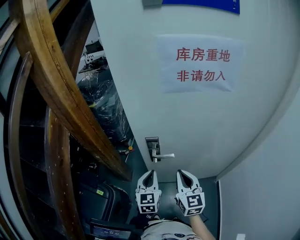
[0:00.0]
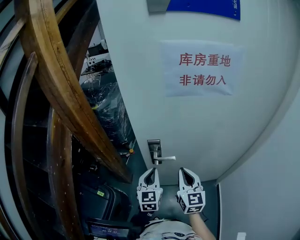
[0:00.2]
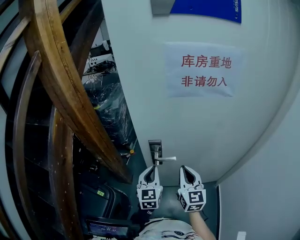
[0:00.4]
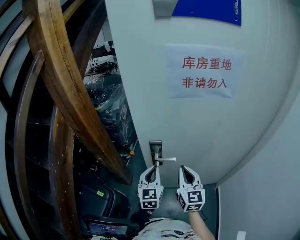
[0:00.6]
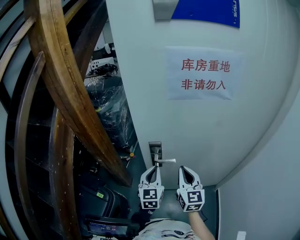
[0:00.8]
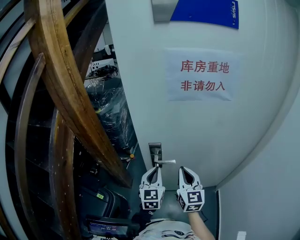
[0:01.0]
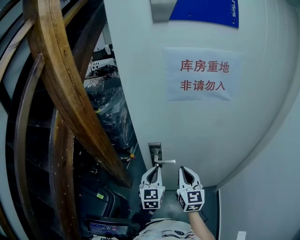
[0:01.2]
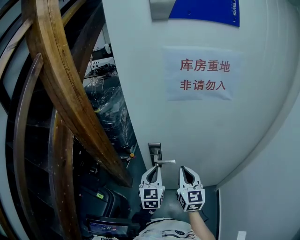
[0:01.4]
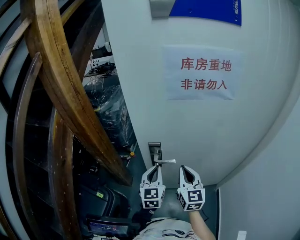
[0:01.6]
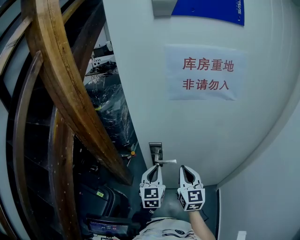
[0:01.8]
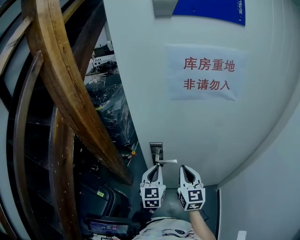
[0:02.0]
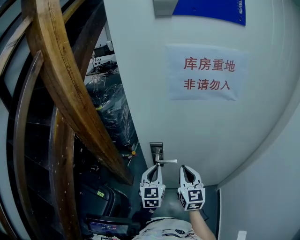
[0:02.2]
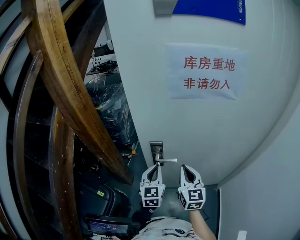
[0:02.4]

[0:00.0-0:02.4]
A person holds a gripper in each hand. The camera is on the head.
0:00.0 to 0:02.4: The grippers move only a little.

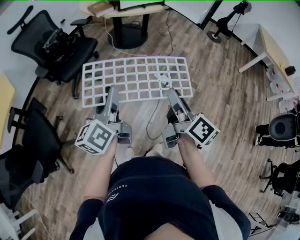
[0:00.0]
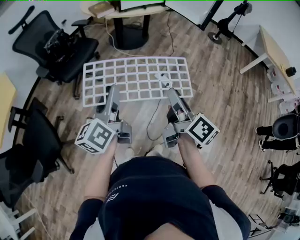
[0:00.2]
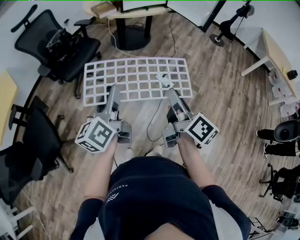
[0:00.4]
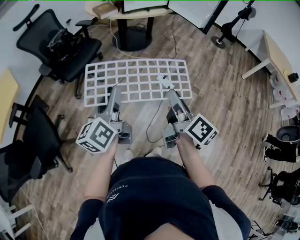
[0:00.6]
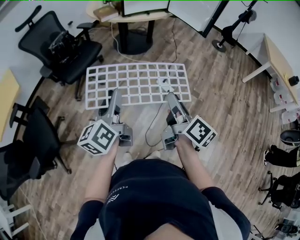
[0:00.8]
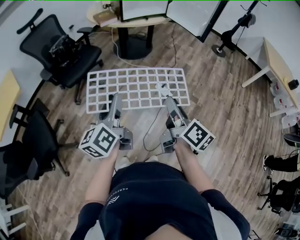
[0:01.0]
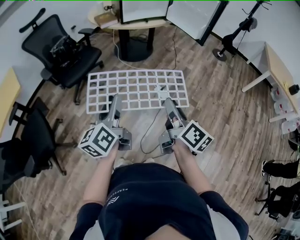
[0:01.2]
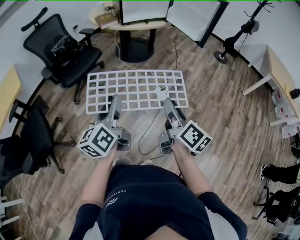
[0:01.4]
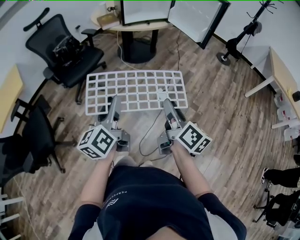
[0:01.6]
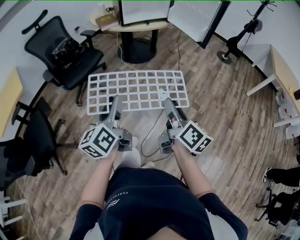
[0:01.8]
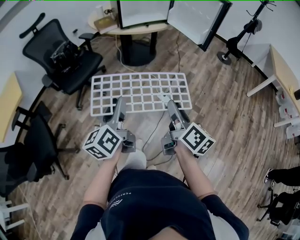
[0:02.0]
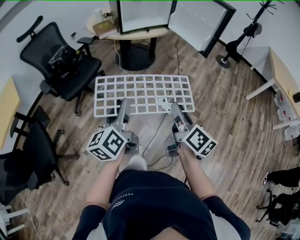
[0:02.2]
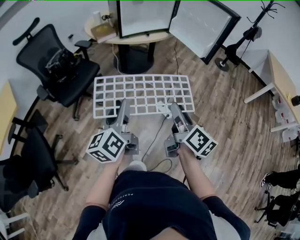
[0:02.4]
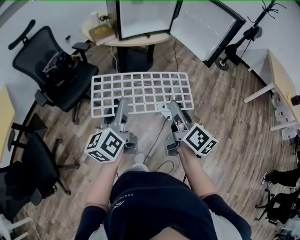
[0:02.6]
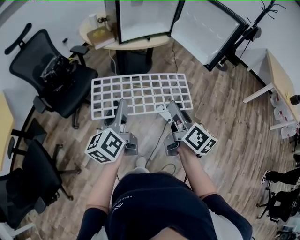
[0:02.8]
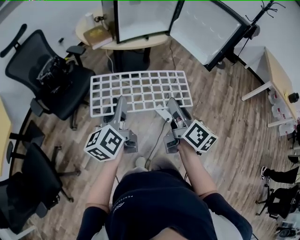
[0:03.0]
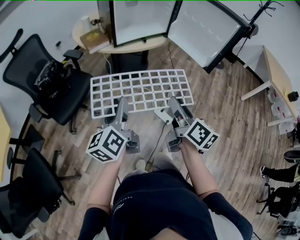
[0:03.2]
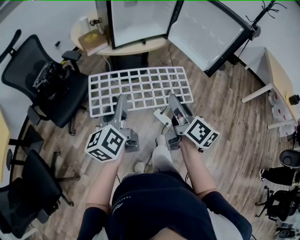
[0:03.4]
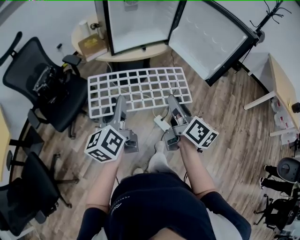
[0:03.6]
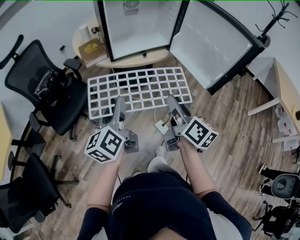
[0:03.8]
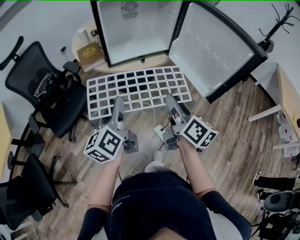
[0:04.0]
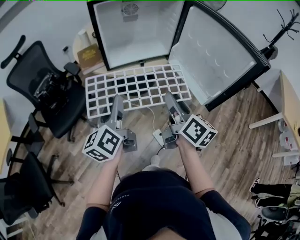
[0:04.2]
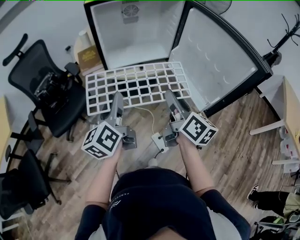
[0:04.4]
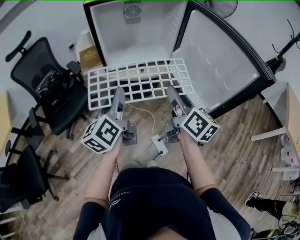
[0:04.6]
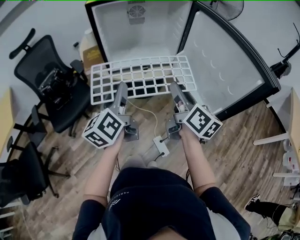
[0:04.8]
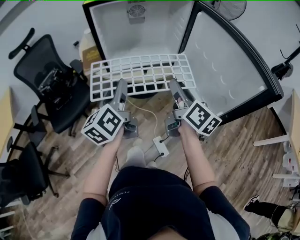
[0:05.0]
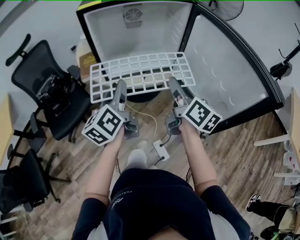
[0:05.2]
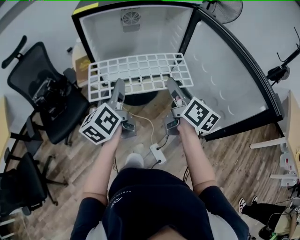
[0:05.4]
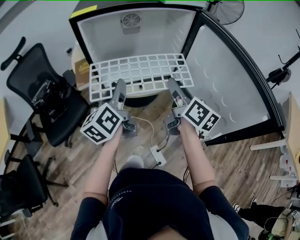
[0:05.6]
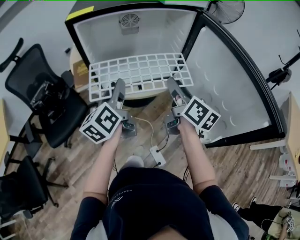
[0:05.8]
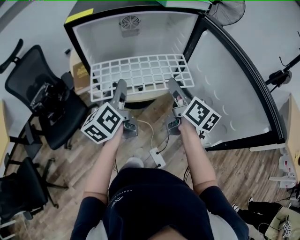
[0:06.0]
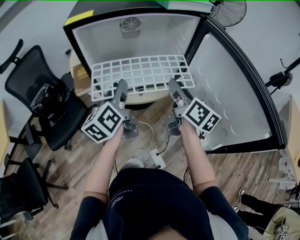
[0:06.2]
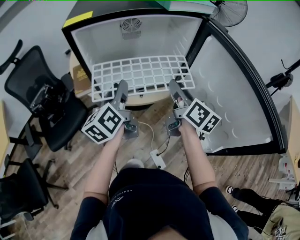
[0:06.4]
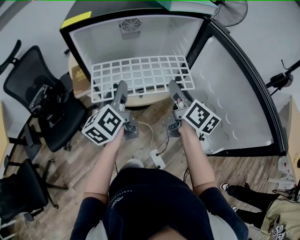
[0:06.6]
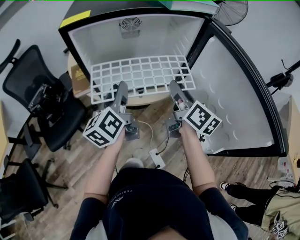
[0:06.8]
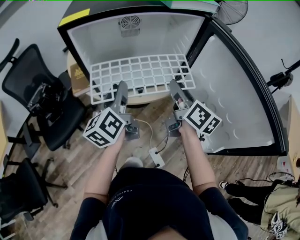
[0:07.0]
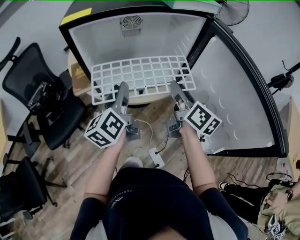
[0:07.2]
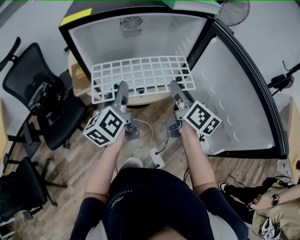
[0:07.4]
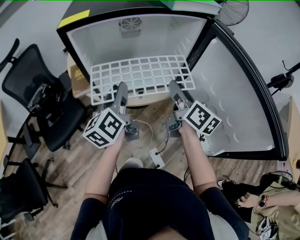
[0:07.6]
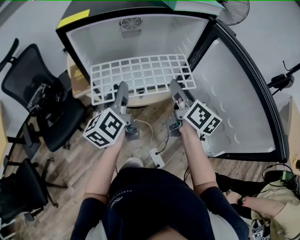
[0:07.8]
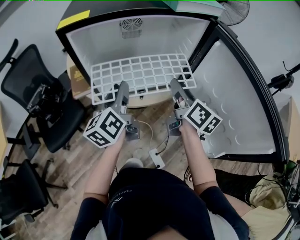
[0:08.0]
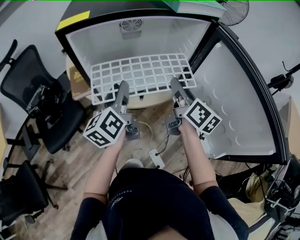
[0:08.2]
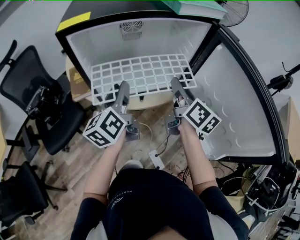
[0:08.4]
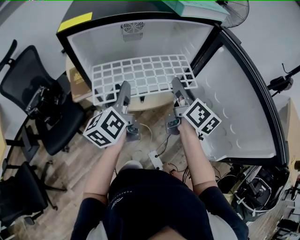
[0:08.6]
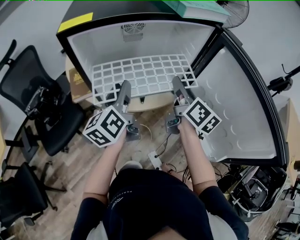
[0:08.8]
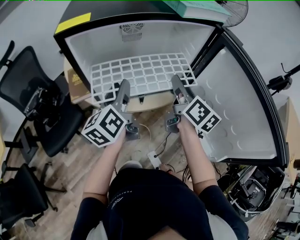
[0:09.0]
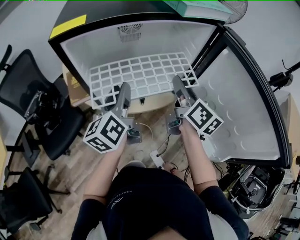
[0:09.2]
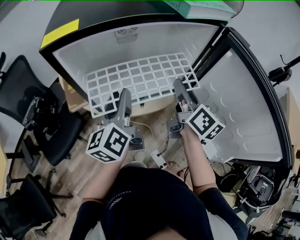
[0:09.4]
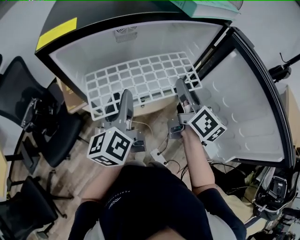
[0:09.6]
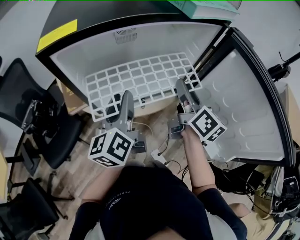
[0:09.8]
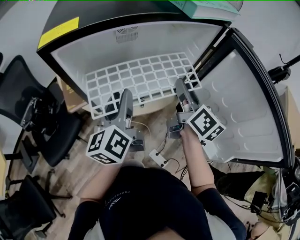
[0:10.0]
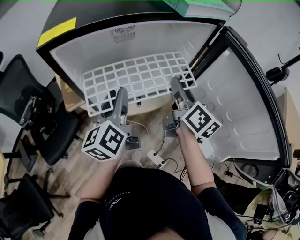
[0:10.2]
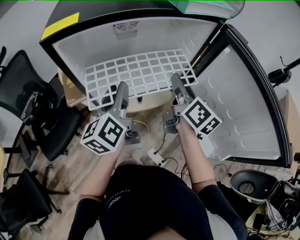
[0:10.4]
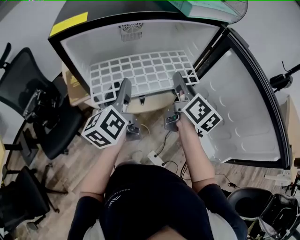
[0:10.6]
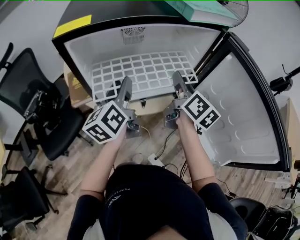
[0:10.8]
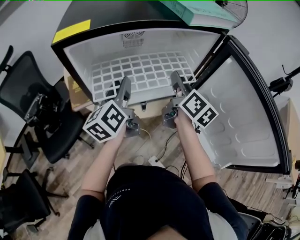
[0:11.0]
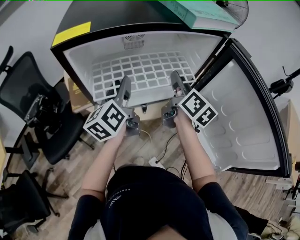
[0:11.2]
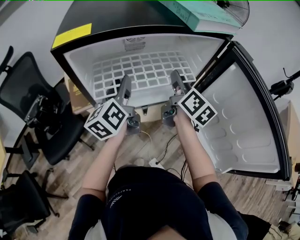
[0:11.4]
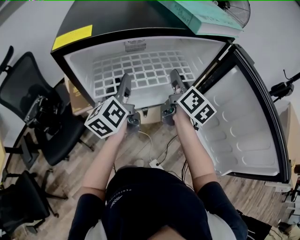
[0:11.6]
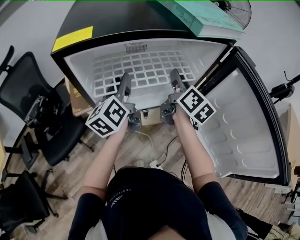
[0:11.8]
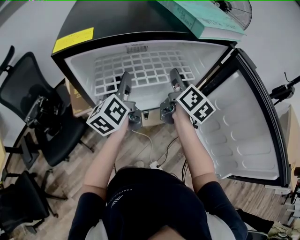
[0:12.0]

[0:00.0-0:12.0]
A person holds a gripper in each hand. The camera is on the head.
0:00.0 to 0:01.6: The two grippers go approximately 10 cm to the right.
0:01.6 to 0:03.0: The grippers both shift forward by some 25 cm.
0:03.0 to 0:04.4: Both grippers move forward and to the right, about 25 cm.
0:04.4 to 0:06.0: Both grippers travel together forward, roughly 20 cm.
0:06.0 to 0:07.6: The grippers stay close to where they were, moving slightly.
0:07.6 to 0:10.4: The grippers move only a little.
0:10.4 to 0:12.0: Both grippers move forward, about 10 cm.

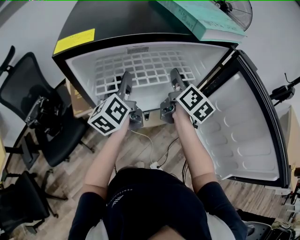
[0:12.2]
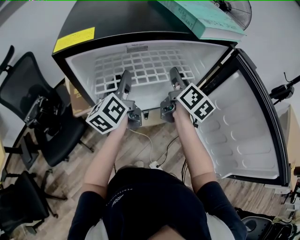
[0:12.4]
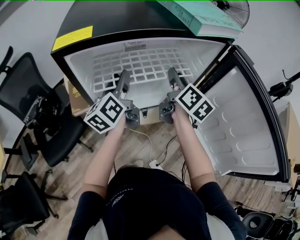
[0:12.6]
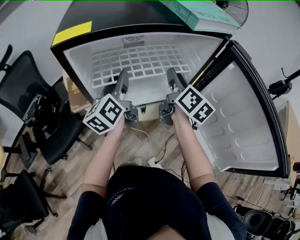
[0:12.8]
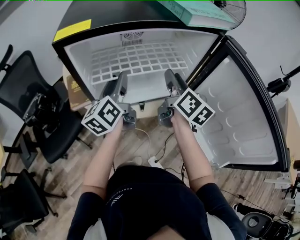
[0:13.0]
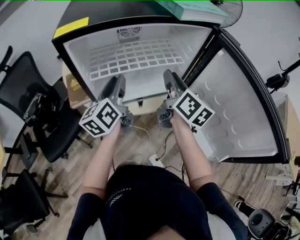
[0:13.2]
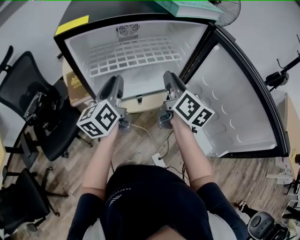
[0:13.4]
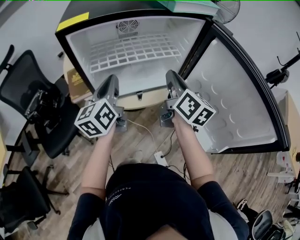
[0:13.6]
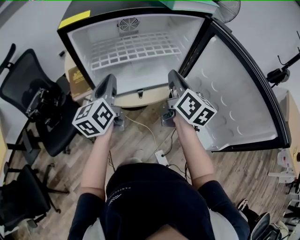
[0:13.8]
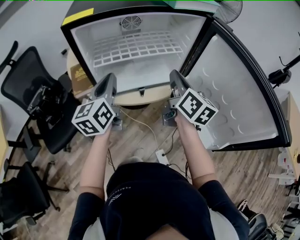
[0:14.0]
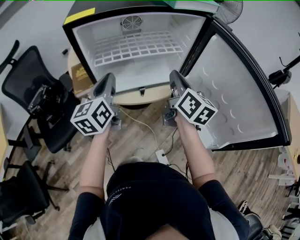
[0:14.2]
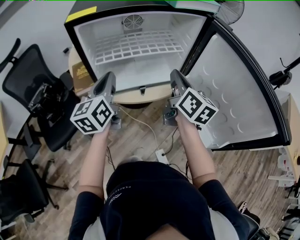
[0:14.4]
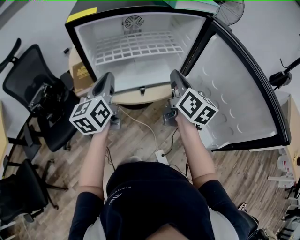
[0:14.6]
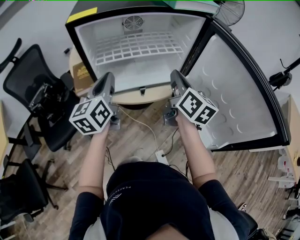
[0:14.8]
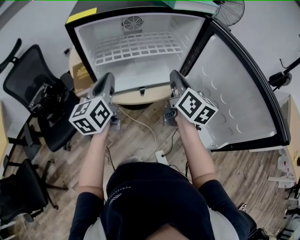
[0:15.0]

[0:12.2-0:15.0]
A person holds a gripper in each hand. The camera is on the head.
0:12.2 to 0:13.6: Both grippers move backward, approximately 10 cm. The right gripper closes. Meanwhile the left gripper closes.
0:13.6 to 0:15.0: The grippers move only a little.

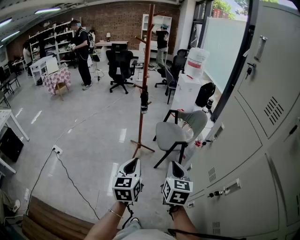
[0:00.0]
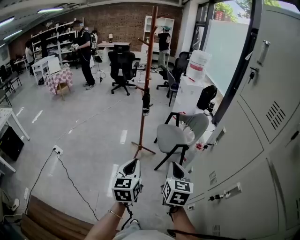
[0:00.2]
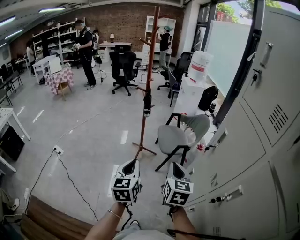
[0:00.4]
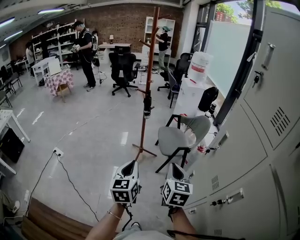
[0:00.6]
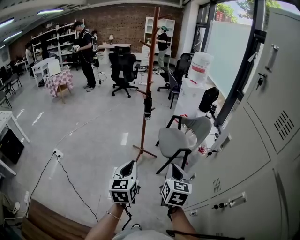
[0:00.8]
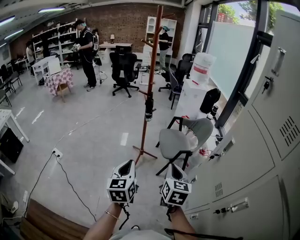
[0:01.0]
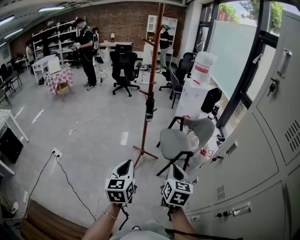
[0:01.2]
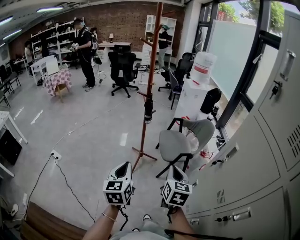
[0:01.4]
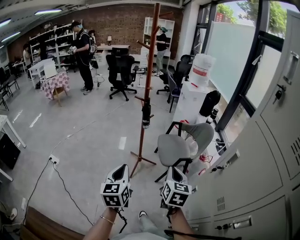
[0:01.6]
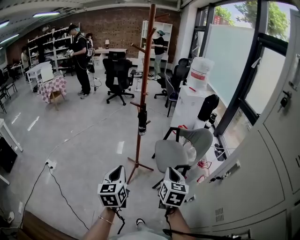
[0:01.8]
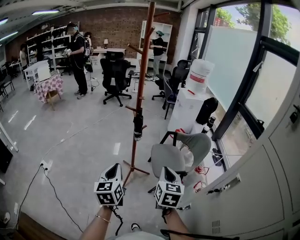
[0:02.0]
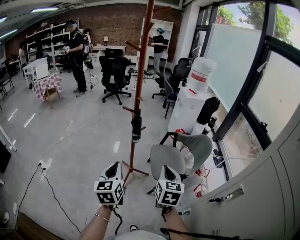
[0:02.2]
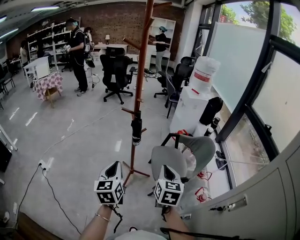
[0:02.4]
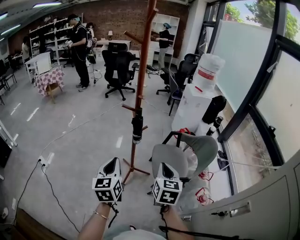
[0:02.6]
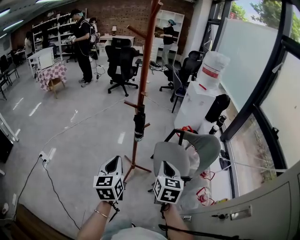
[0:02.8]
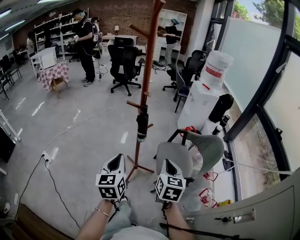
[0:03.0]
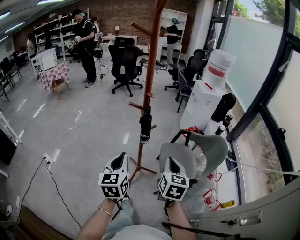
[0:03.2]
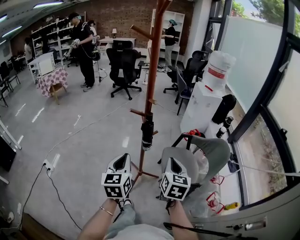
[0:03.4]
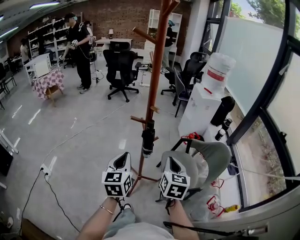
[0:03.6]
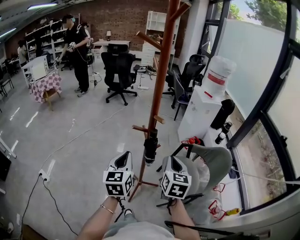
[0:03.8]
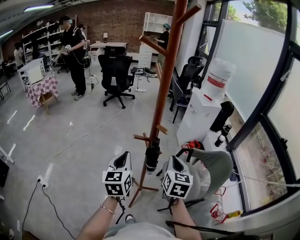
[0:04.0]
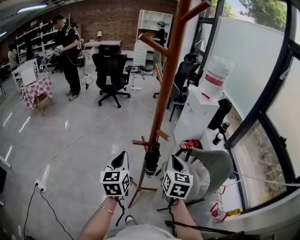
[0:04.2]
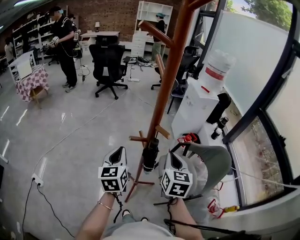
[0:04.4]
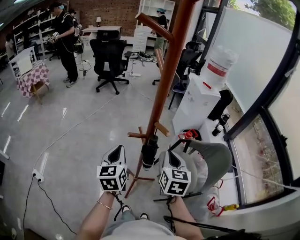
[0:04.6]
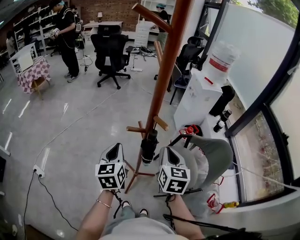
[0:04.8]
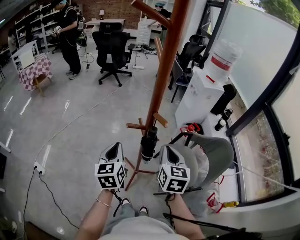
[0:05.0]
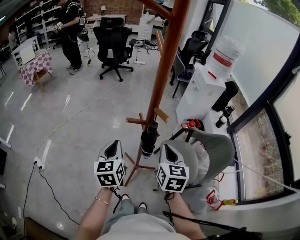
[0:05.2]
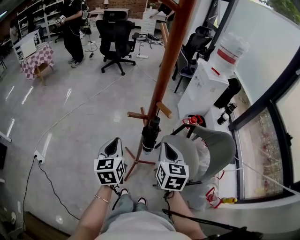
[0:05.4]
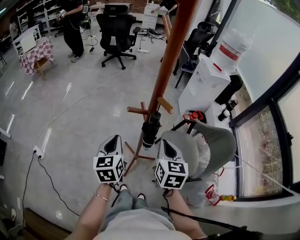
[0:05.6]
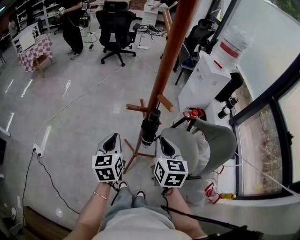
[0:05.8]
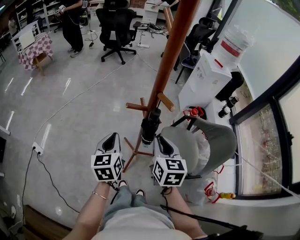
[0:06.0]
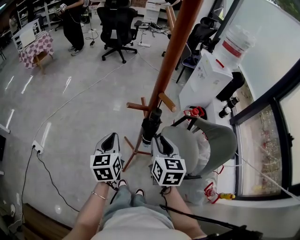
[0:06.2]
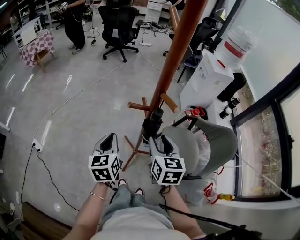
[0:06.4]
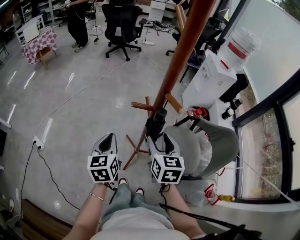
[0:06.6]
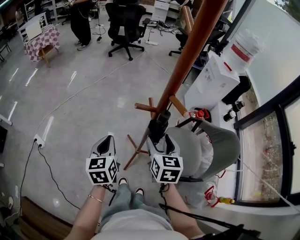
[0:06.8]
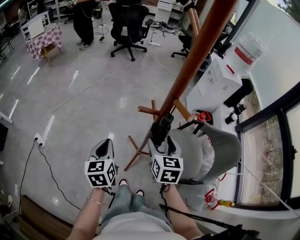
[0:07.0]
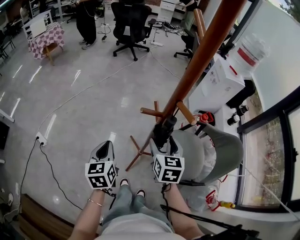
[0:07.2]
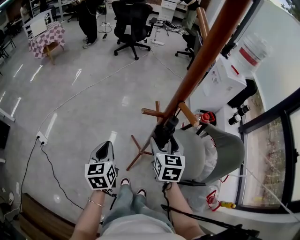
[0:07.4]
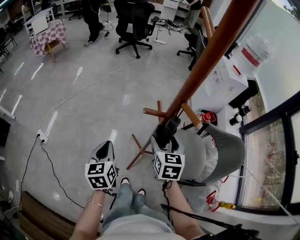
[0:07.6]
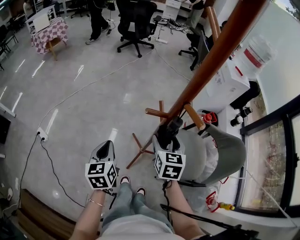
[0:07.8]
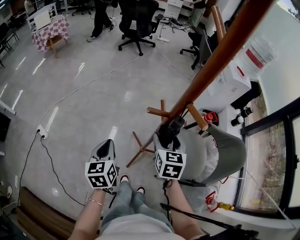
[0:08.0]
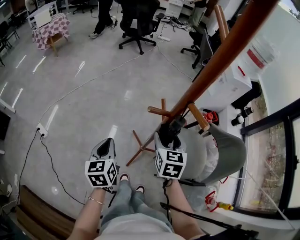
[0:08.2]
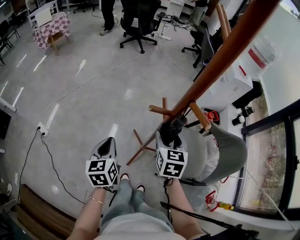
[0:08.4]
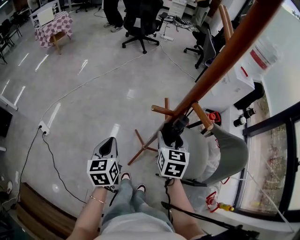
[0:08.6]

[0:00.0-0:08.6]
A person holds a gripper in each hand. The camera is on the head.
0:00.0 to 0:01.4: The right gripper moves forward, some 10 cm, while the left gripper is displaced forward and to the left by approximately 10 cm.
0:01.4 to 0:02.8: The grippers both shift forward by roughly 30 cm.
0:02.8 to 0:04.4: The grippers both shift forward by some 25 cm.
0:04.4 to 0:05.8: The two grippers go some 5 cm downward.
0:05.8 to 0:07.2: The left gripper shifts roughly 5 cm to the left; the right gripper changes place by some 5 cm, and opens.
0:07.2 to 0:08.6: There are only small adjustments of the grippers.
